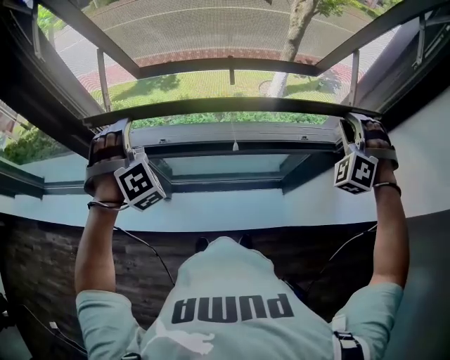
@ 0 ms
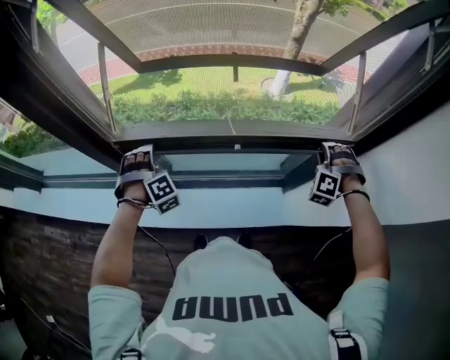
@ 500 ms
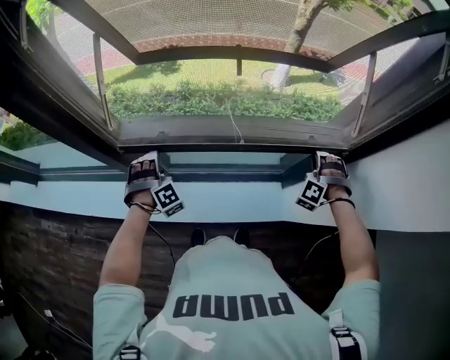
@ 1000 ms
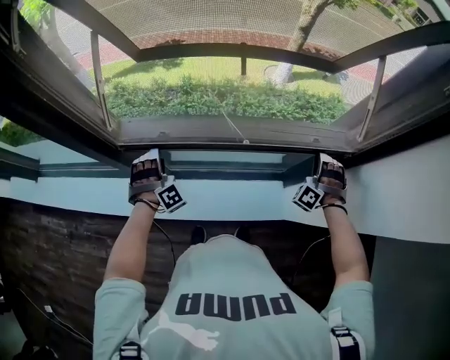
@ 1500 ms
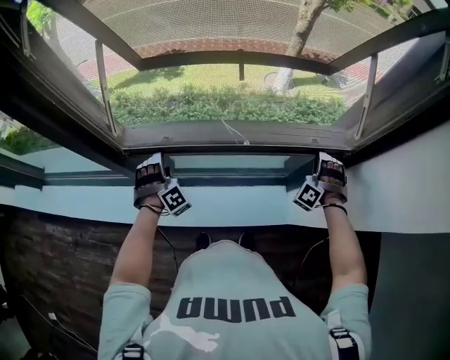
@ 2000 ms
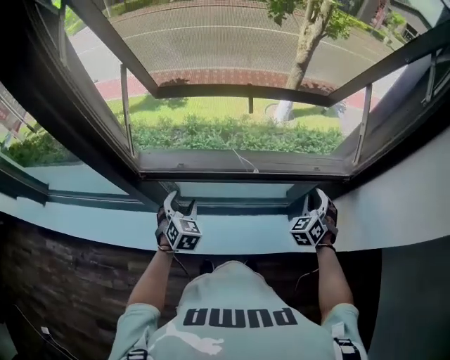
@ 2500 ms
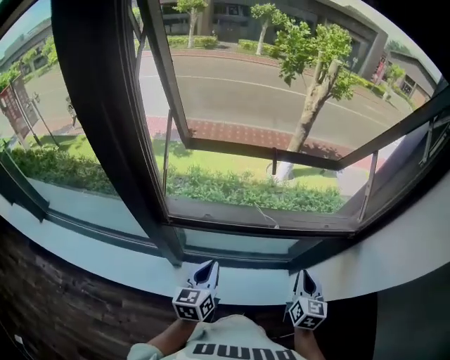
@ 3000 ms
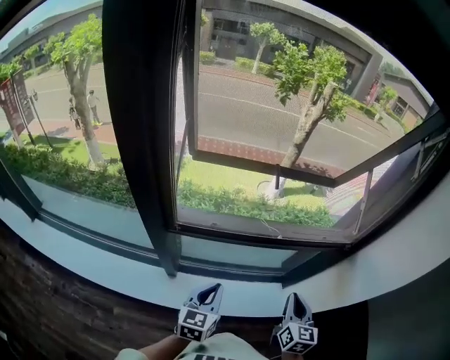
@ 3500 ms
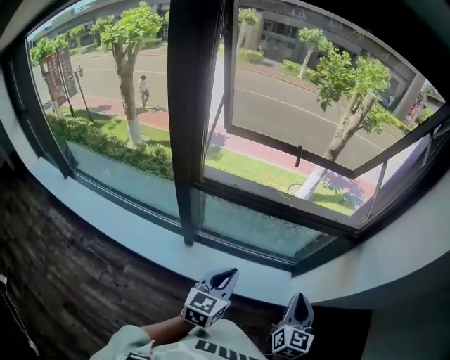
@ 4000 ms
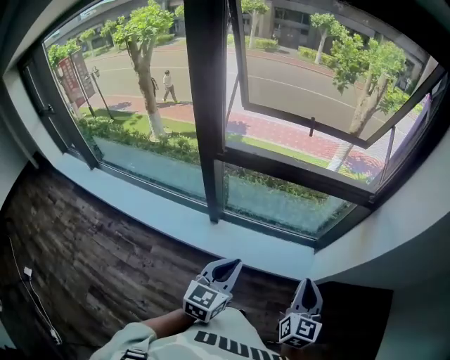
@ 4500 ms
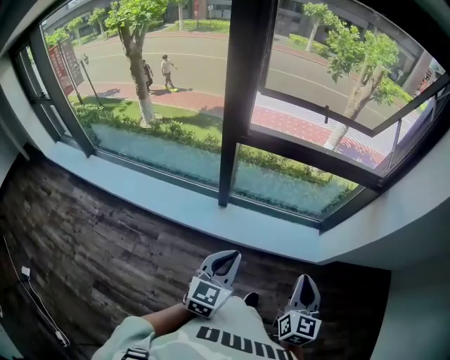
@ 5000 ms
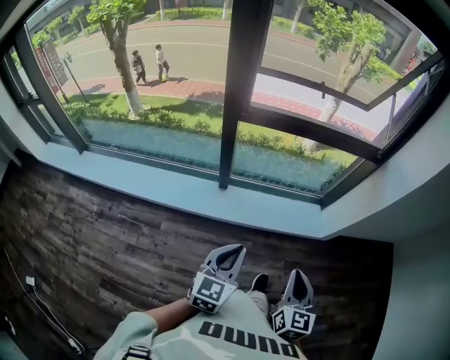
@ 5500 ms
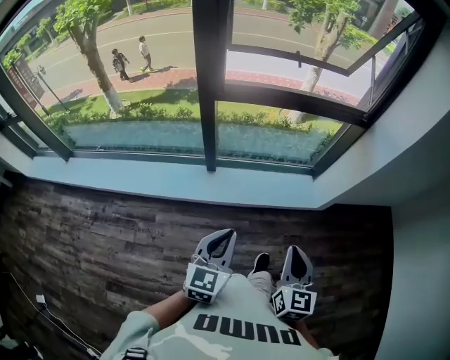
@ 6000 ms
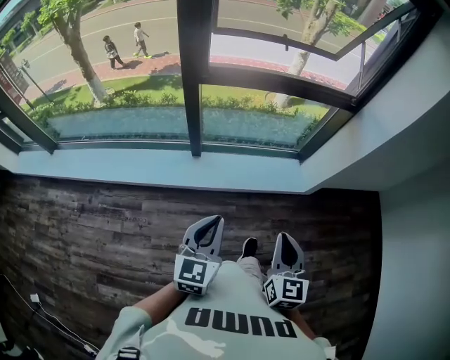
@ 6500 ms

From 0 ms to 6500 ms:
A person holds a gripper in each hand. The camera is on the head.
From 0 ms to 2000 ms: The grippers both shift downward by about 25 cm.
From 2000 ms to 4500 ms: The two grippers travel together, backward, approximately 50 cm. The left gripper rolls counterclockwise, seen from behind, by some 80 degrees, and closes. The right gripper rotates around the line of its fingers by about 90 degrees, clockwise from behind, and closes its fingers.
From 4500 ms to 6500 ms: Both grippers travel together backward and to the left, approximately 25 cm.

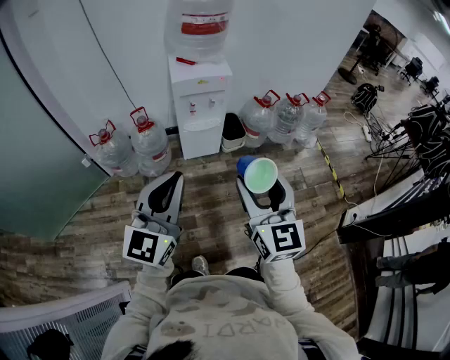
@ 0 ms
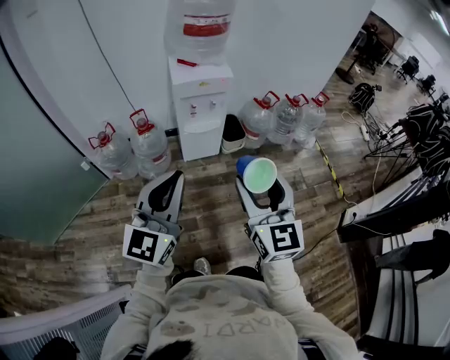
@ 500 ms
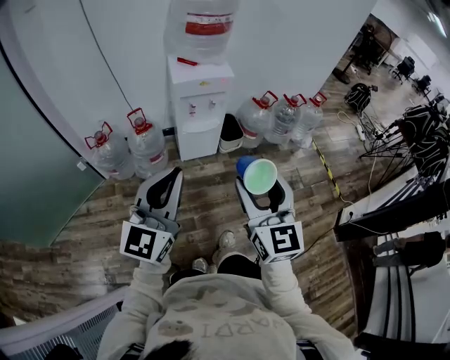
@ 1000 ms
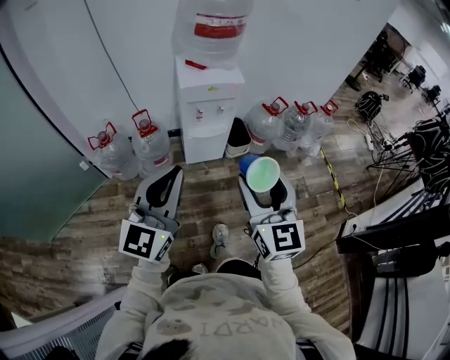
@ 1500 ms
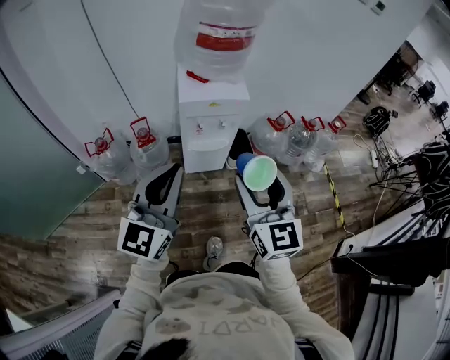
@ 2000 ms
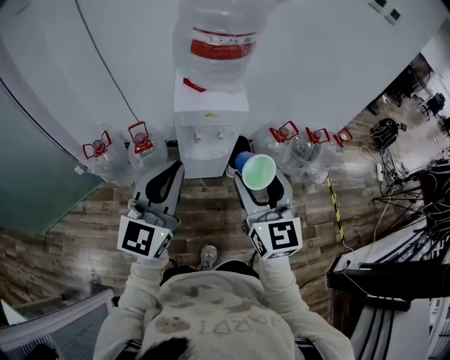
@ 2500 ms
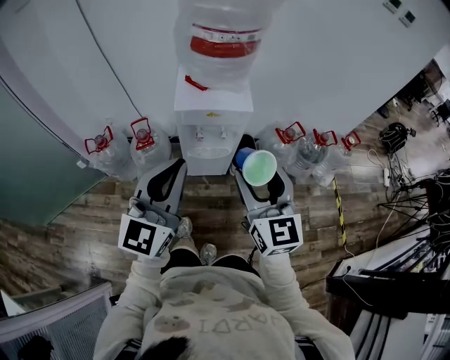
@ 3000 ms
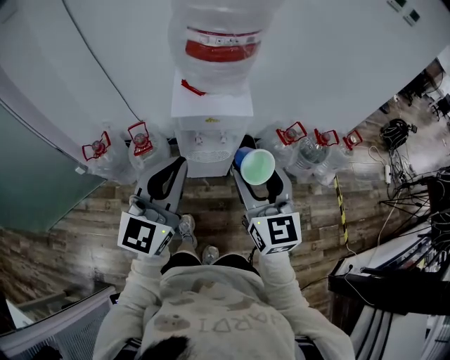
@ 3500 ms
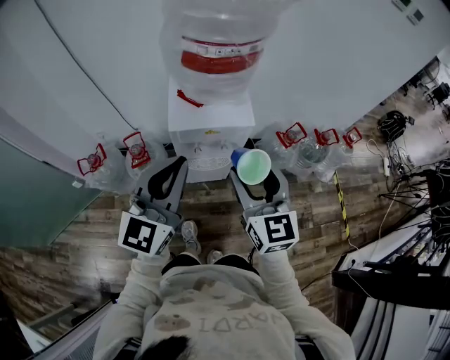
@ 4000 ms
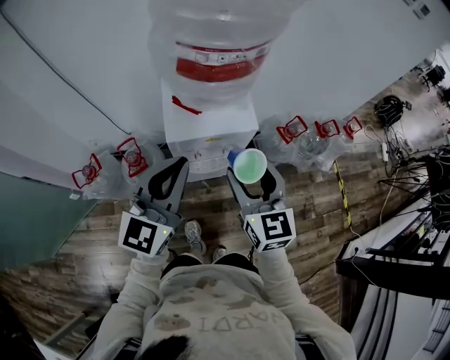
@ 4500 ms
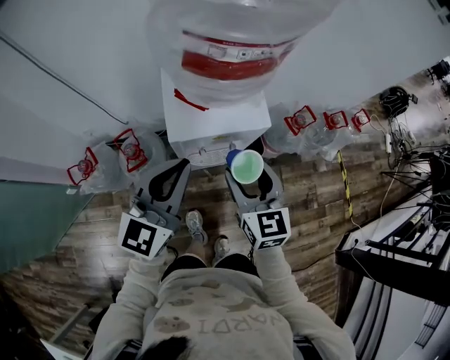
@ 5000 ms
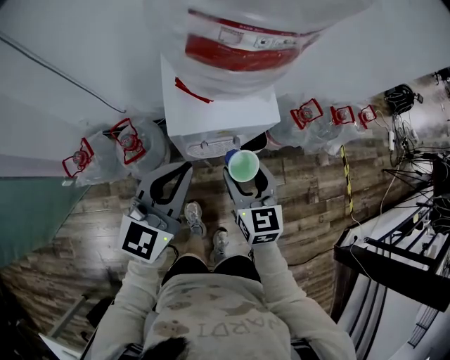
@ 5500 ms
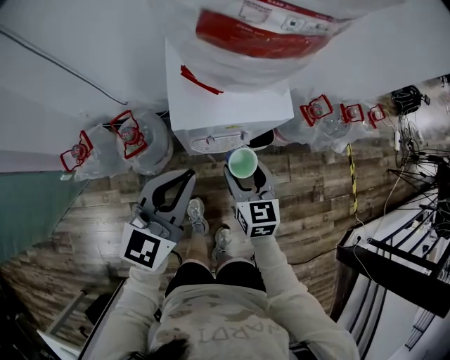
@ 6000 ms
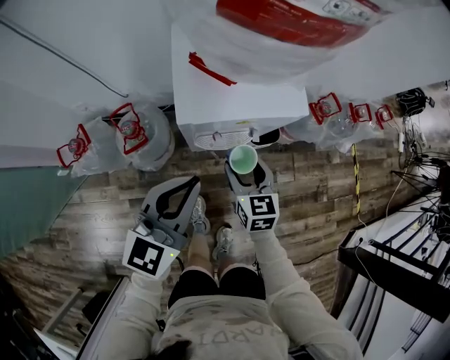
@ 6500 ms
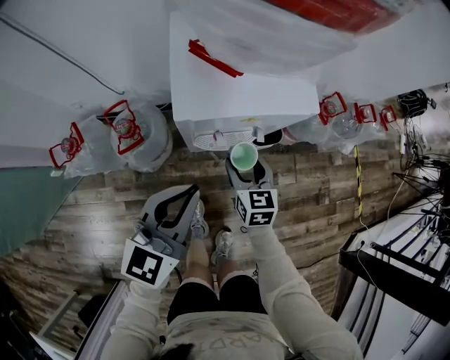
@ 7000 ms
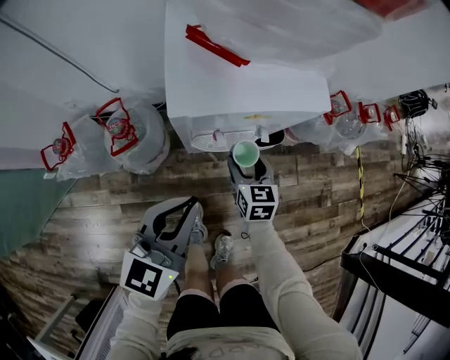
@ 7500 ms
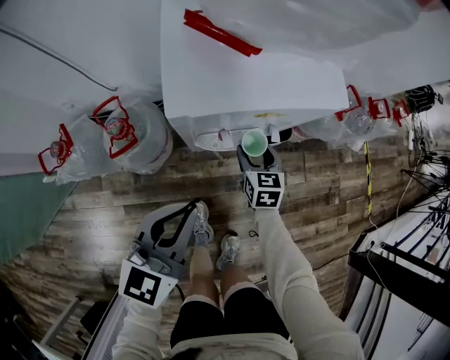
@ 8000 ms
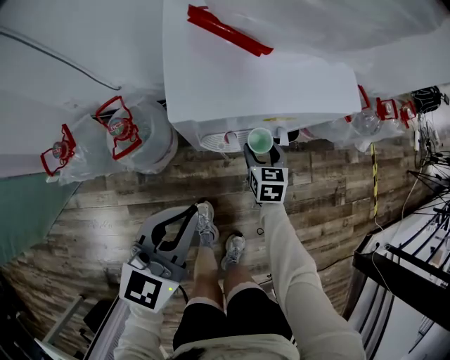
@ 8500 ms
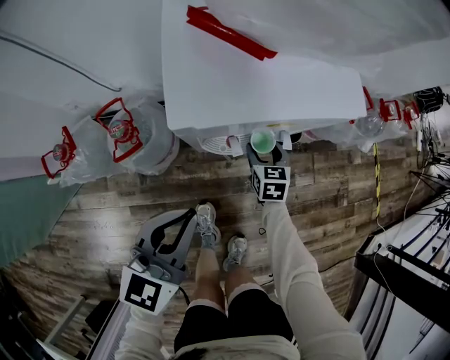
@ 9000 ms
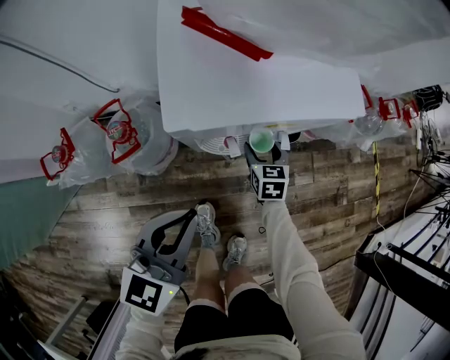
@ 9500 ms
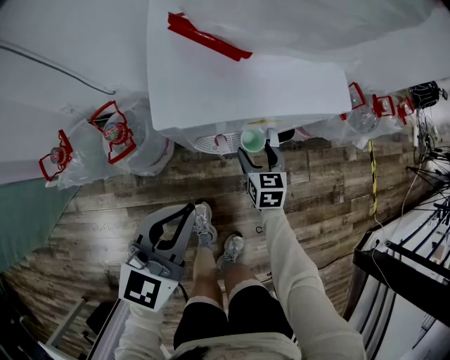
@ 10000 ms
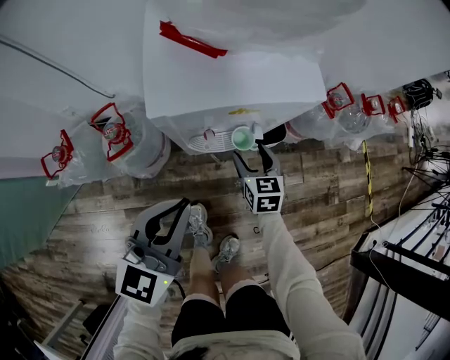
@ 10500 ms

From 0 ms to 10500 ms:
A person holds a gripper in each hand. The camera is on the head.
From 0 ms to 2000 ms: Both grippers travel together forward, about 20 cm.
From 2000 ms to 4000 ms: Both grippers move forward, about 20 cm.
From 4000 ms to 6500 ms: The right gripper goes about 30 cm downward, and swivels about 30 degrees. The left gripper heads downward, covering about 20 cm, and turns by some 20 degrees.
From 6500 ms to 8500 ms: The right gripper shifts about 20 cm downward. Meanwhile the left gripper heads downward, covering roughly 15 cm.
From 8500 ms to 10500 ms: The right gripper is displaced upward by some 5 cm.

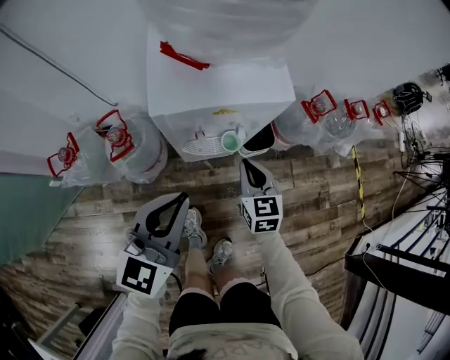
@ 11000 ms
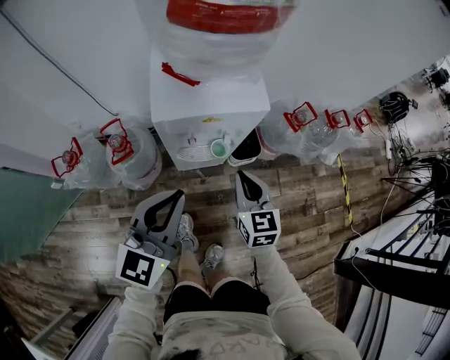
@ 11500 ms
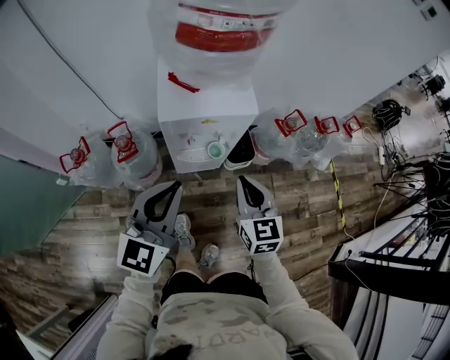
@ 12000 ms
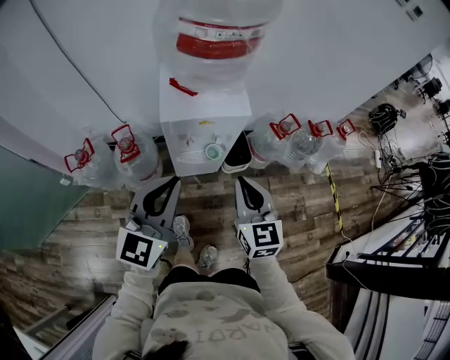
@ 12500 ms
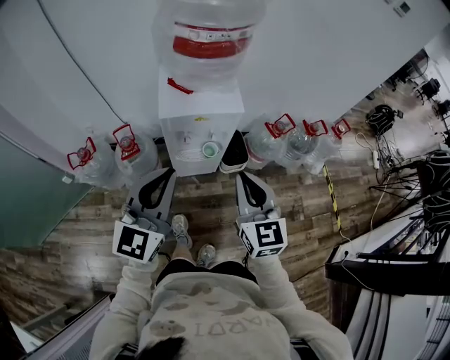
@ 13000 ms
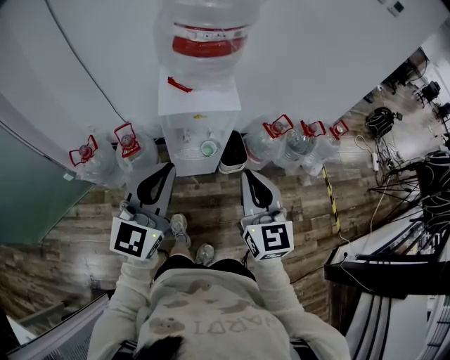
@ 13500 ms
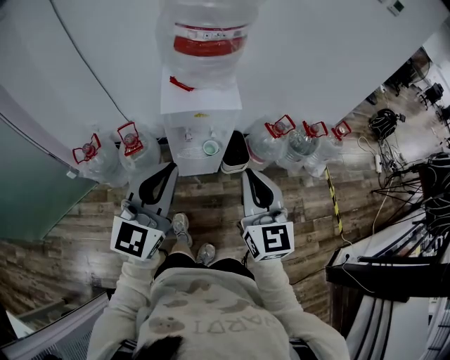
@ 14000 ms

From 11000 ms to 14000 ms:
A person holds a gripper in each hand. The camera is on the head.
From 11000 ms to 12500 ms: The right gripper travels upward and backward by approximately 30 cm. The left gripper shifts approximately 20 cm upward and backward.
From 12500 ms to 14000 ms: Both grippers travel together upward and backward, about 10 cm.

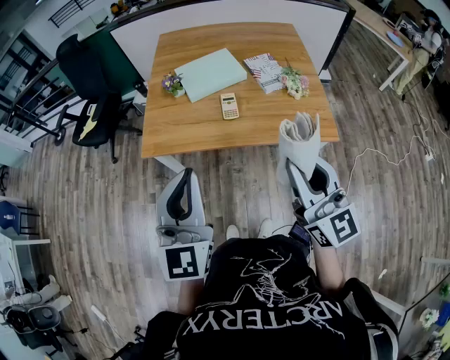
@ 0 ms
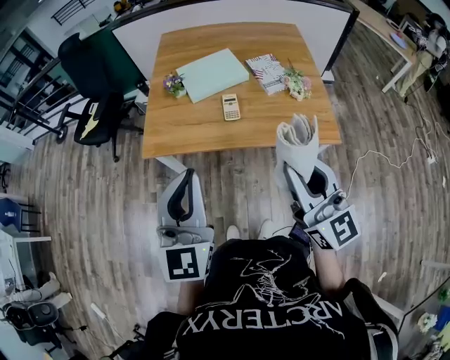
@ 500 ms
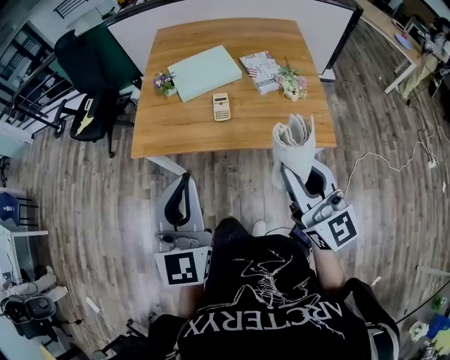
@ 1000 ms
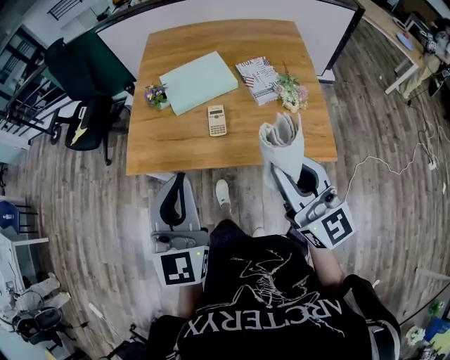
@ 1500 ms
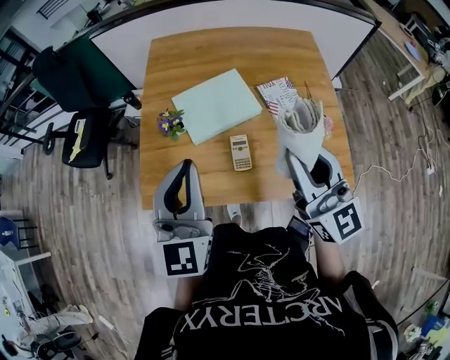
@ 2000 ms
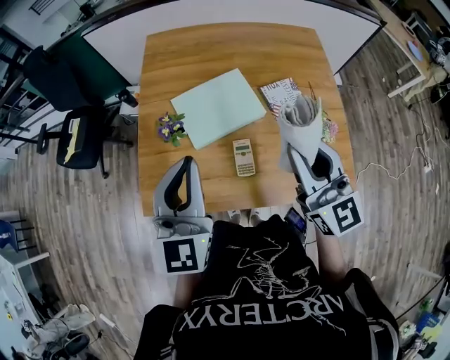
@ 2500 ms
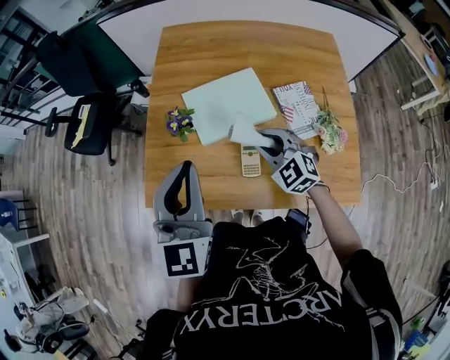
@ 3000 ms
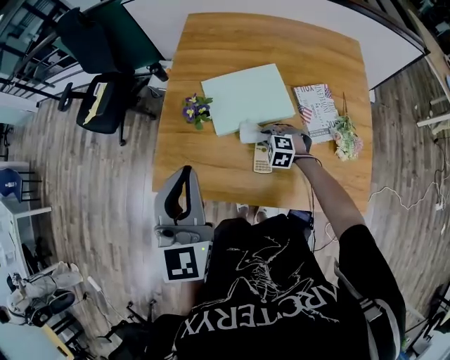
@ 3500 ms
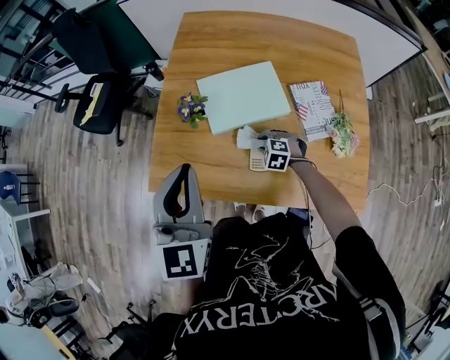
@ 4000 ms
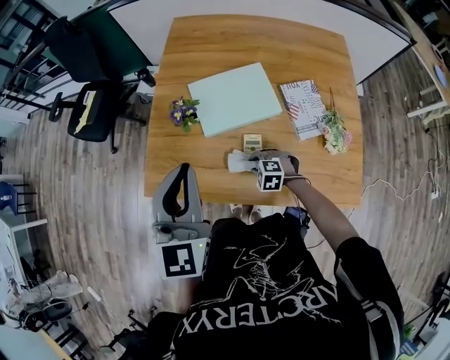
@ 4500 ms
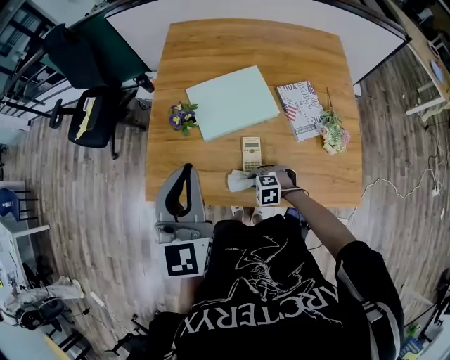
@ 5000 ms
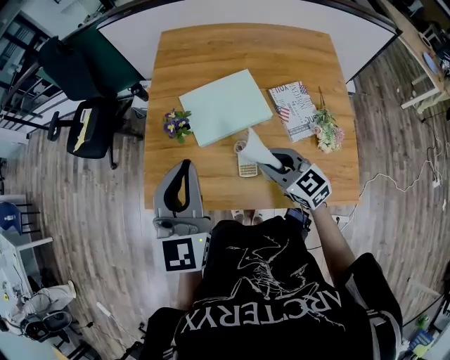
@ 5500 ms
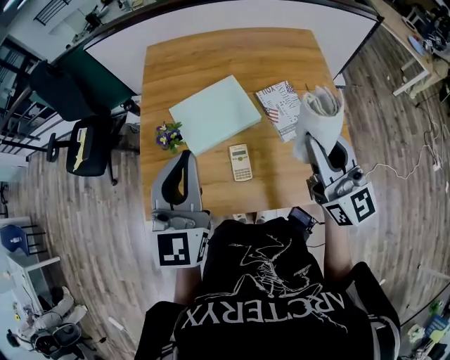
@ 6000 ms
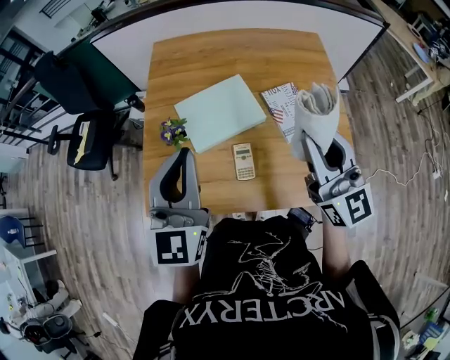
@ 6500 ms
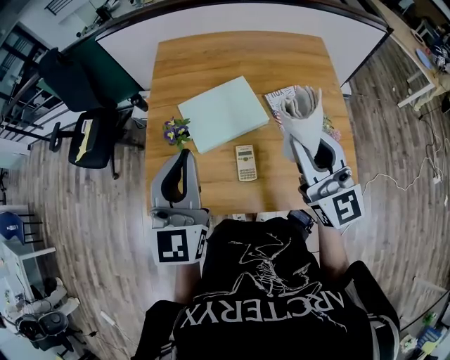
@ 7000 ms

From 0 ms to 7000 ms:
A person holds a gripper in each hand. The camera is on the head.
From 0 ms to 2000 ms: The two grippers go approximately 30 cm forward.
From 2000 ms to 3500 ms: The left gripper moves approximately 5 cm. Meanwhile the right gripper goes approximately 50 cm downward and forward, and points its fingers roughly 70 degrees further downward.
From 3500 ms to 5000 ms: The right gripper goes roughly 15 cm backward and to the left.
From 5000 ms to 7000 ms: The right gripper goes about 50 cm upward, and tilts its fingers some 80 degrees upward. The left gripper shifts by about 5 cm.
